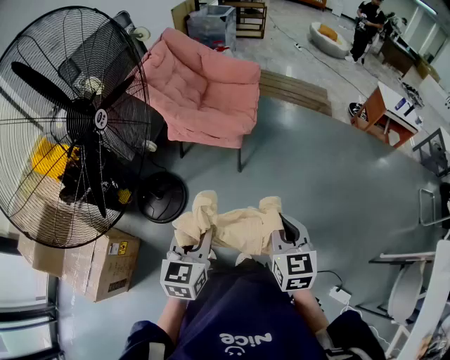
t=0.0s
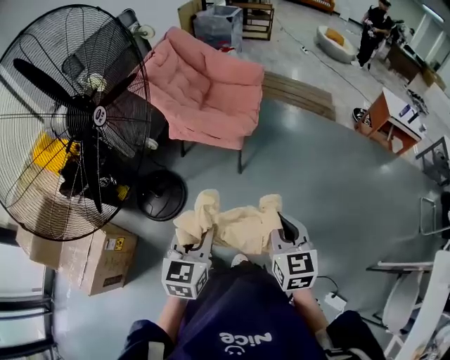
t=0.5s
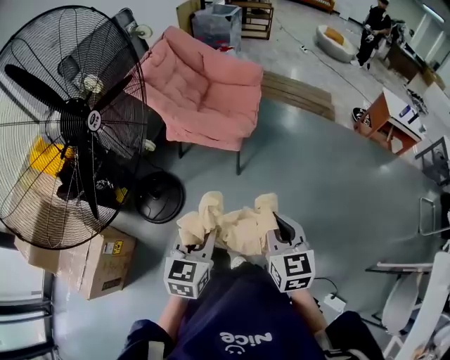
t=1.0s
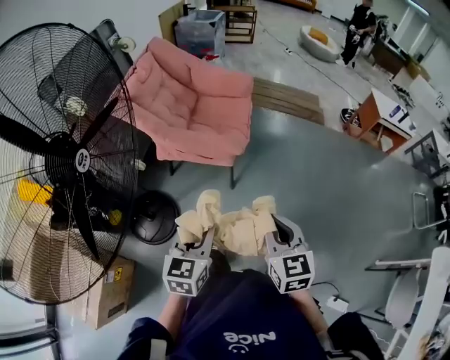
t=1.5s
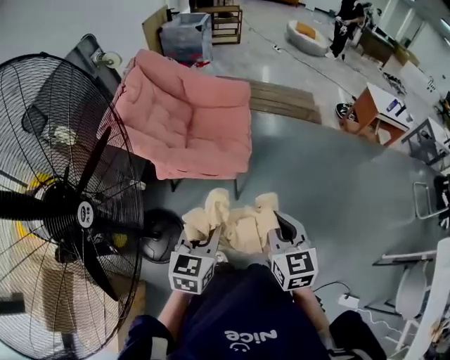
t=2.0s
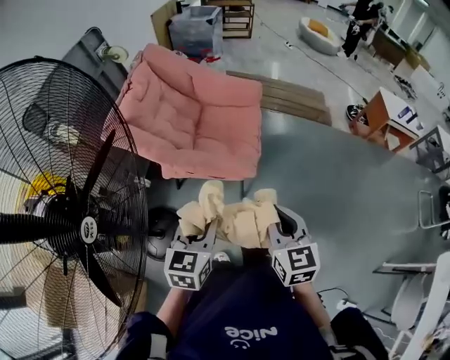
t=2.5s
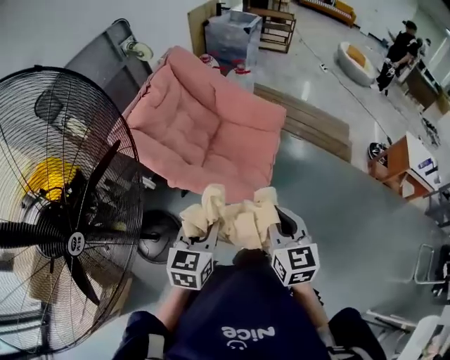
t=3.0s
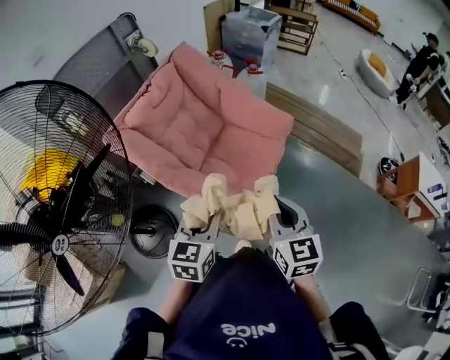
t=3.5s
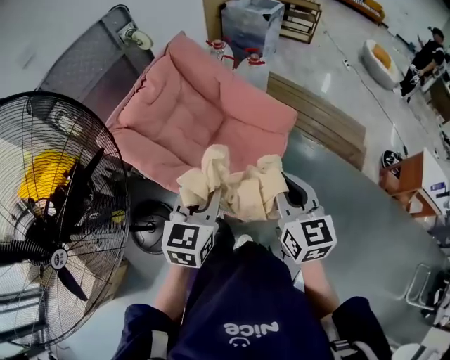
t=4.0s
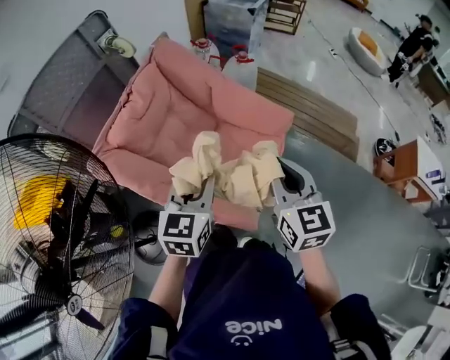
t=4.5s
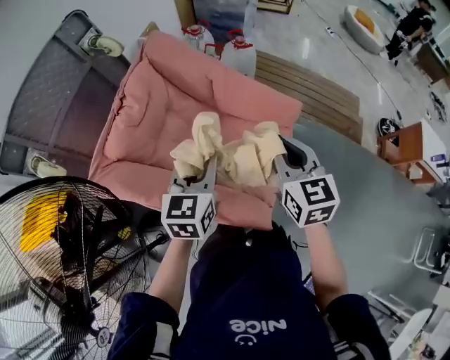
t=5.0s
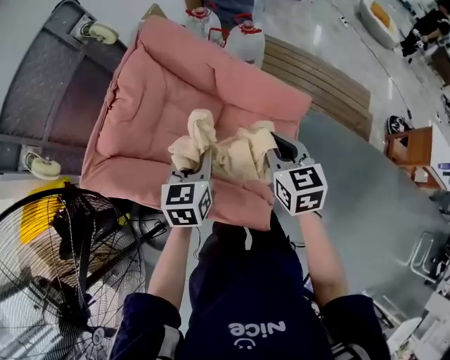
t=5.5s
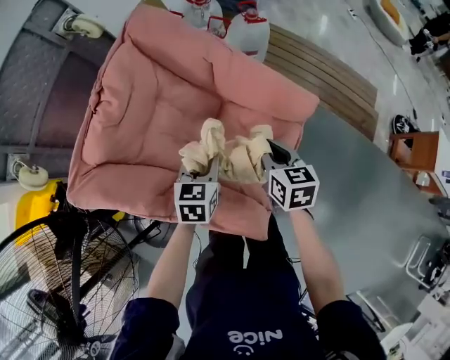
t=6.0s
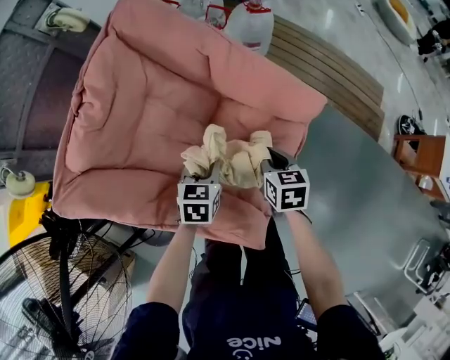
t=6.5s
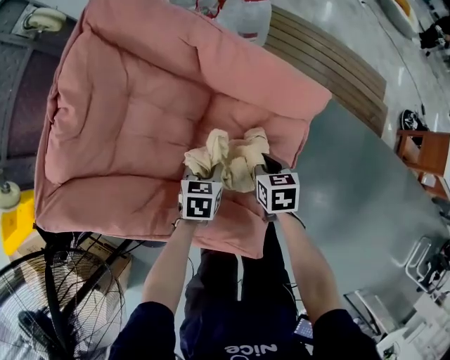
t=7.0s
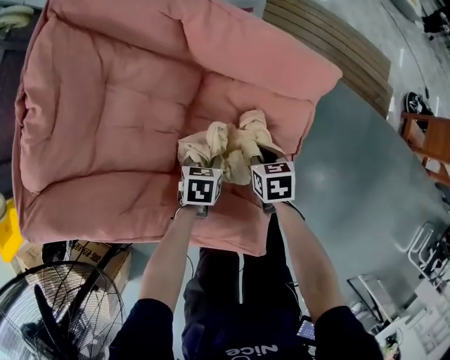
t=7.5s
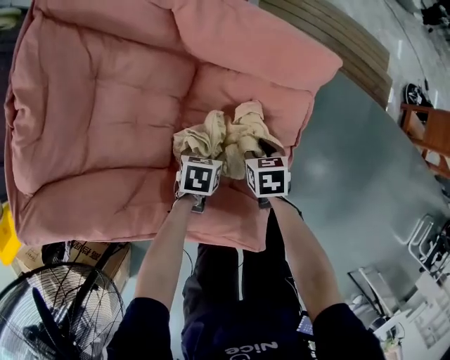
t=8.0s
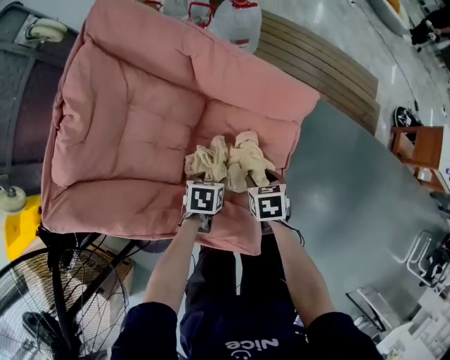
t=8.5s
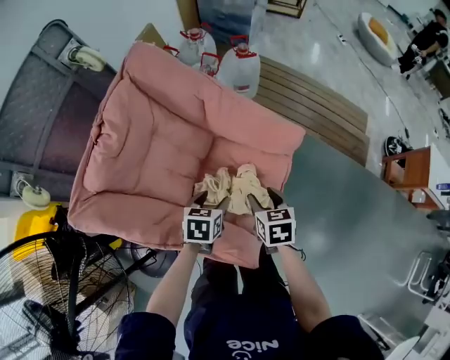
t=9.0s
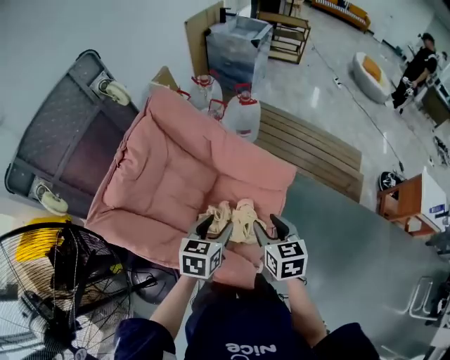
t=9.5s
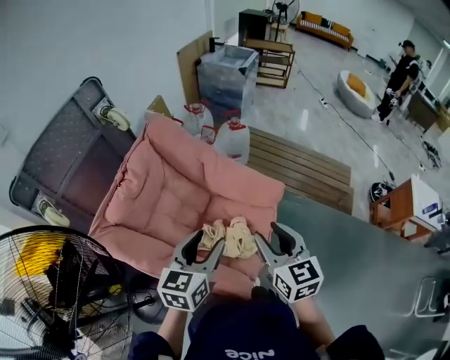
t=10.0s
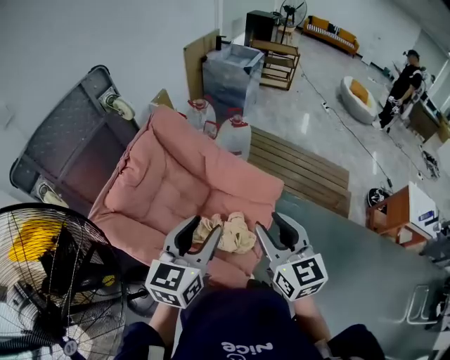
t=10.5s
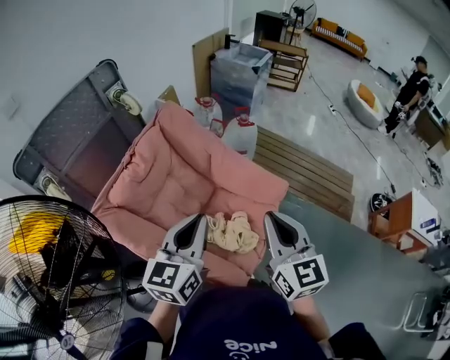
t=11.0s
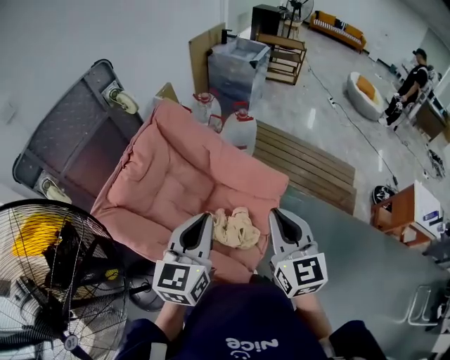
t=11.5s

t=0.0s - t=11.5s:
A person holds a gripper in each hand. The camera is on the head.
t=0.0s - t=2.0s: The two grippers go approximately 25 cm forward.
t=2.0s - t=4.0s: The grippers both shift forward by some 40 cm. The left gripper swivels approximately 20 degrees, while the right gripper changes its angle by approximately 20 degrees.
t=4.0s - t=6.0s: Both grippers move forward and downward, approximately 35 cm. The right gripper turns by roughly 30 degrees, while the left gripper changes its angle by approximately 20 degrees.
t=6.0s - t=7.5s: Both grippers move downward, approximately 30 cm. The left gripper changes its angle by approximately 30 degrees, while the right gripper changes its angle by roughly 20 degrees.
t=7.5s - t=9.5s: Both grippers move upward, some 40 cm. The left gripper changes its angle by some 30 degrees, and opens its fingers, while the right gripper rotates some 30 degrees, and opens.
t=9.5s - t=11.5s: Both grippers travel together upward, approximately 20 cm. The right gripper rotates roughly 30 degrees, and closes; the left gripper swivels approximately 30 degrees, and closes its fingers.

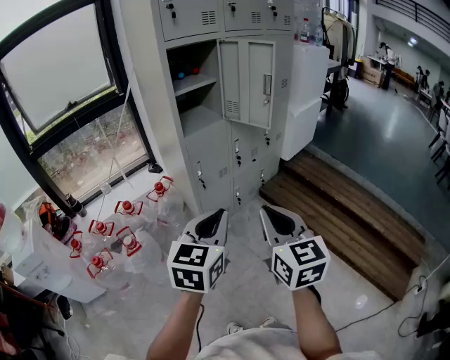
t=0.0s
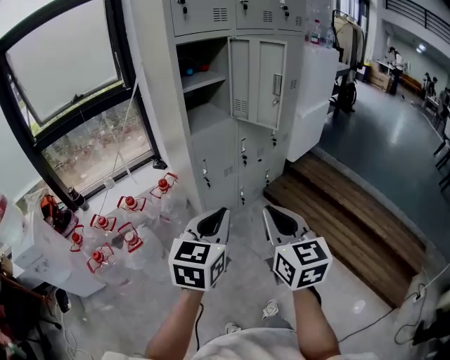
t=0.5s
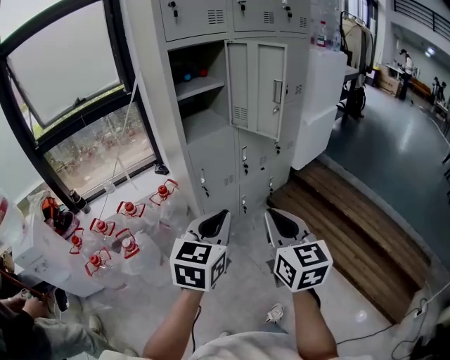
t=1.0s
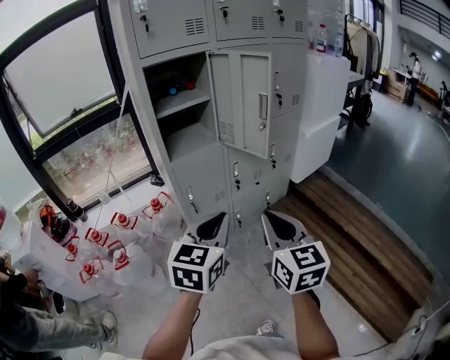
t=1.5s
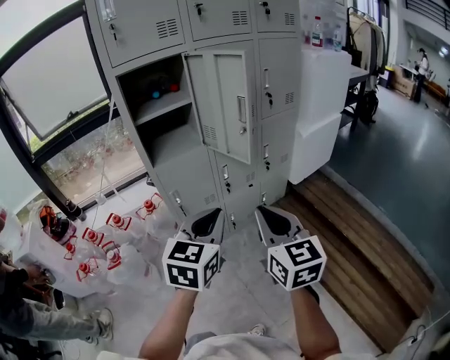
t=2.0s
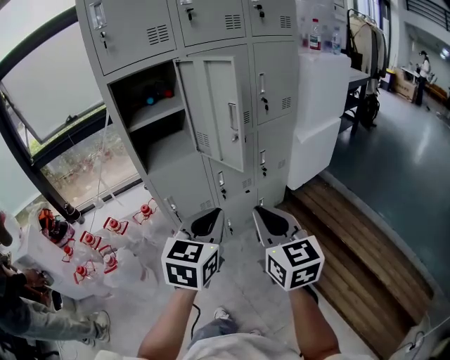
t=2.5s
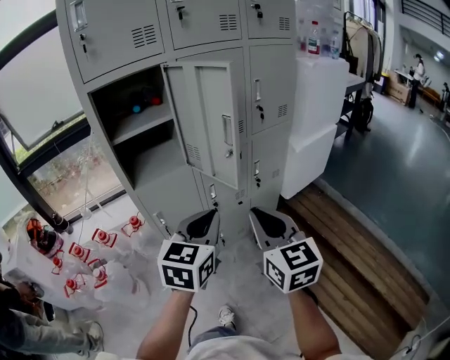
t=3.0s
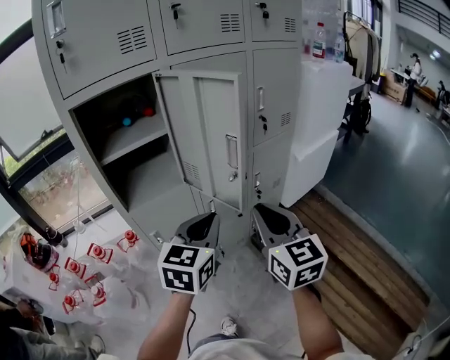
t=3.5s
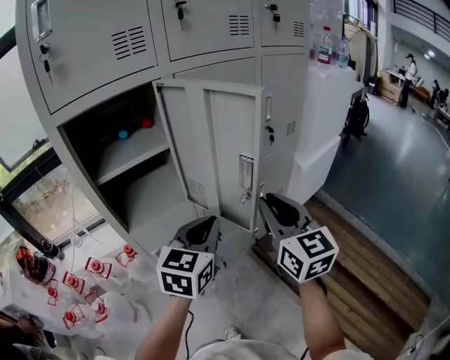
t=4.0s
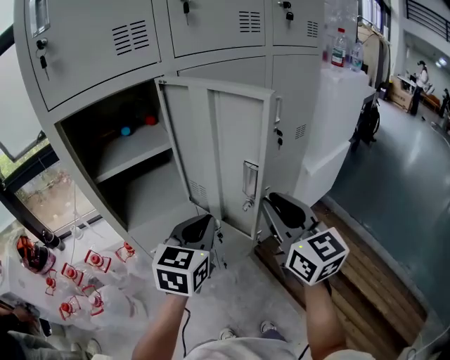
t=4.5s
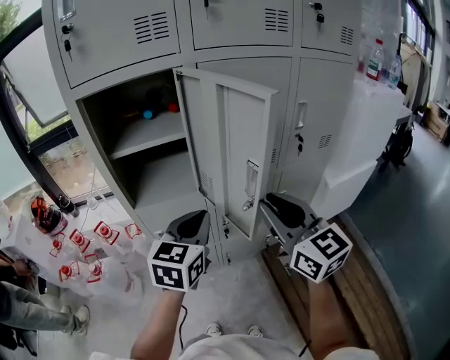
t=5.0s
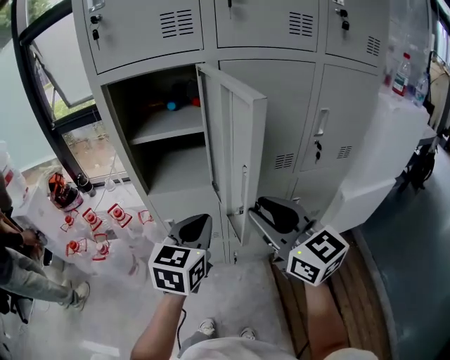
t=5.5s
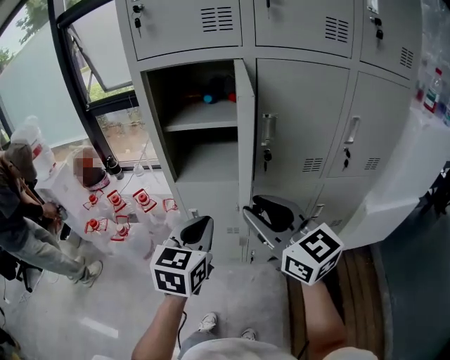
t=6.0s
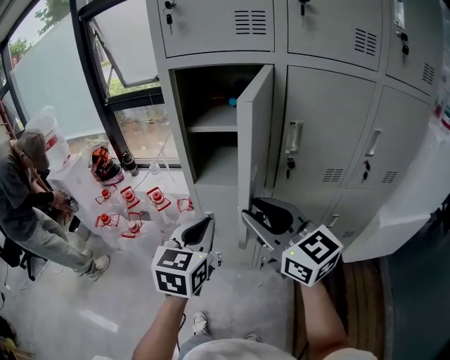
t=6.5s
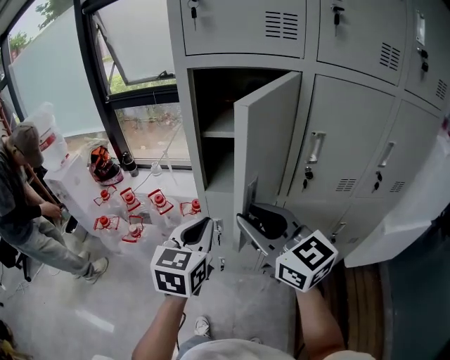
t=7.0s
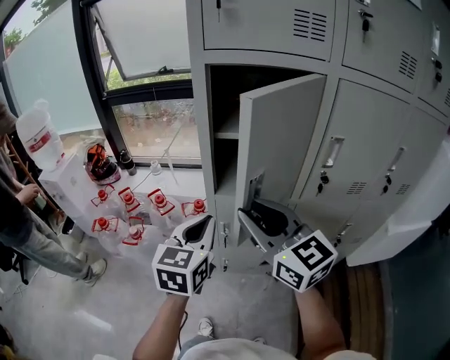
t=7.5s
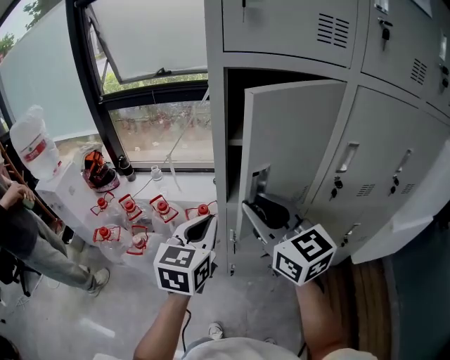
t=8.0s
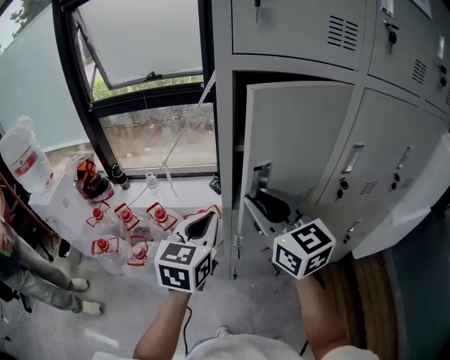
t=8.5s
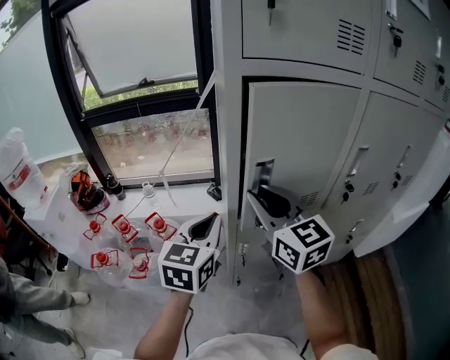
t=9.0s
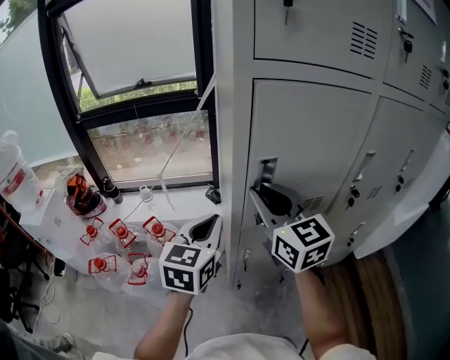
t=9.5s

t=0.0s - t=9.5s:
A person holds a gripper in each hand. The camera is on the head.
t=0.0s - t=2.0s: Both grippers move forward and to the right, about 30 cm.
t=2.0s - t=4.0s: The grippers both shift forward by approximately 25 cm.
t=4.0s - t=5.5s: The left gripper rotates approximately 30 degrees. The right gripper changes its angle by some 40 degrees.
t=5.5s - t=7.5s: Both grippers move to the left and forward, roughly 20 cm.
t=7.5s - t=9.5s: The right gripper goes approximately 15 cm forward, and changes its angle by some 20 degrees. Meanwhile the left gripper heads forward and to the left, covering roughly 15 cm.

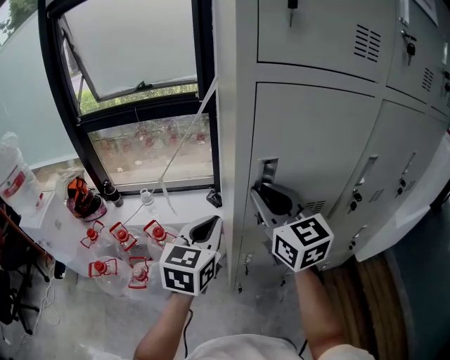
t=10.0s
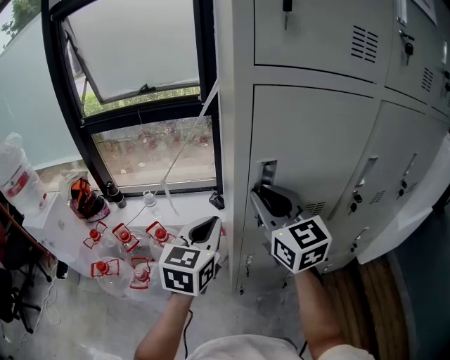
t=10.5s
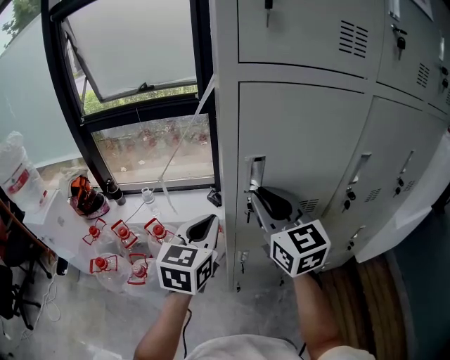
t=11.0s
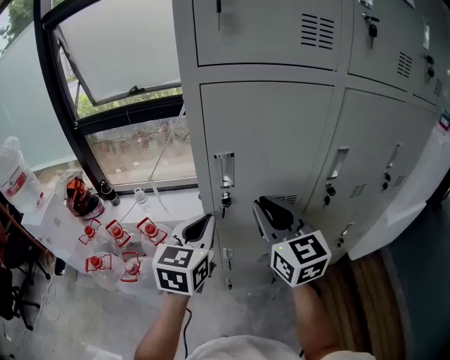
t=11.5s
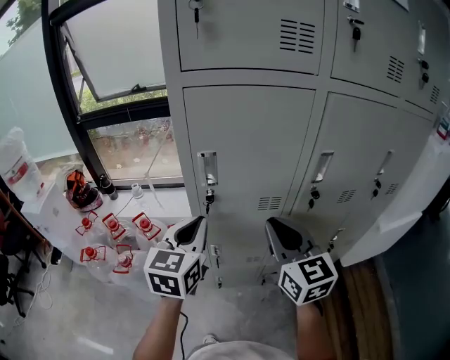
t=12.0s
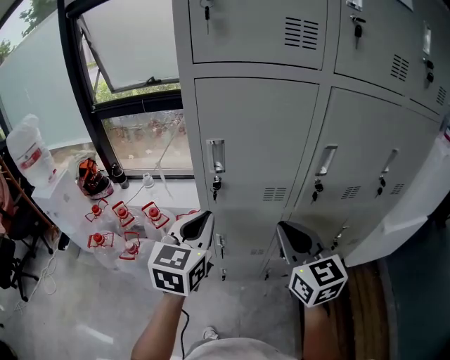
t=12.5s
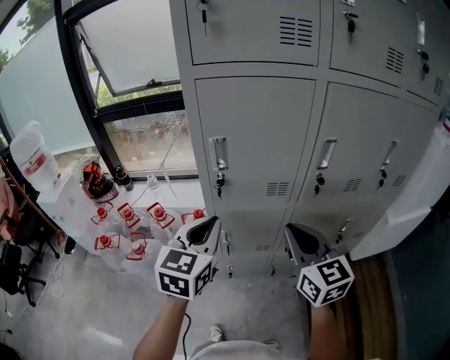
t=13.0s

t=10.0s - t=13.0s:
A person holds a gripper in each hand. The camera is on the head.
t=10.0s - t=11.5s: The right gripper shifts some 10 cm to the right and backward, while the left gripper heads to the right, covering some 5 cm.
t=11.5s - t=13.0s: The right gripper goes approximately 15 cm backward and to the right. Meanwhile the left gripper travels backward by some 10 cm.

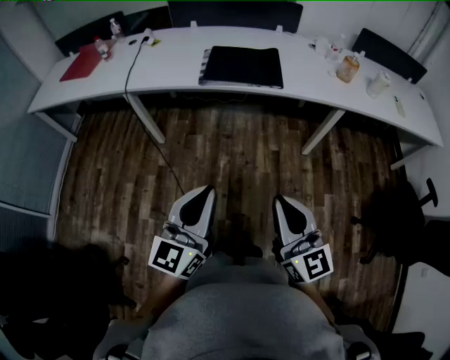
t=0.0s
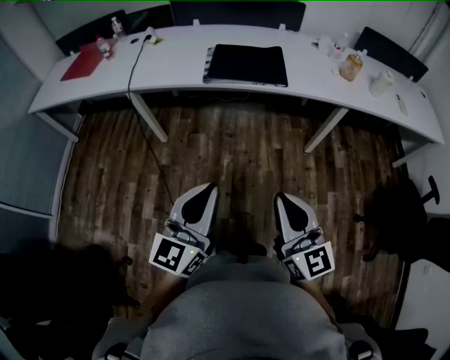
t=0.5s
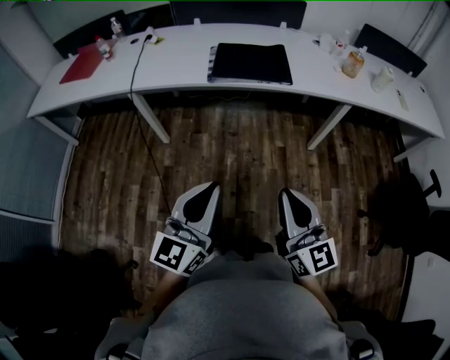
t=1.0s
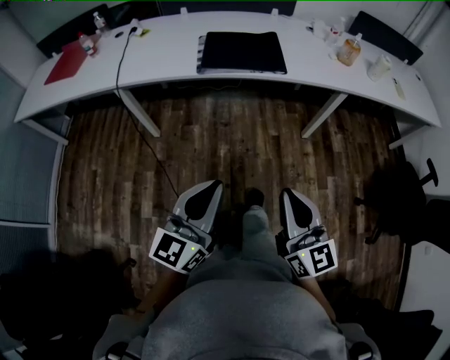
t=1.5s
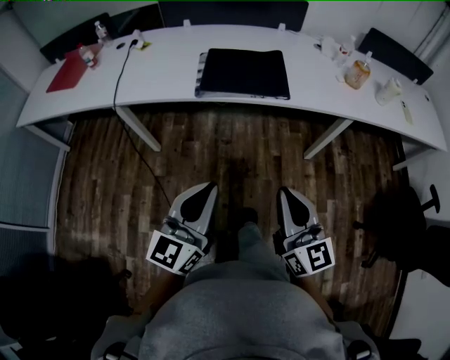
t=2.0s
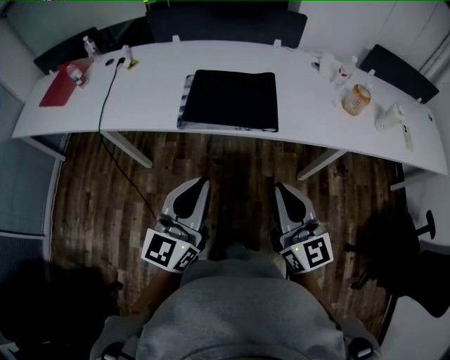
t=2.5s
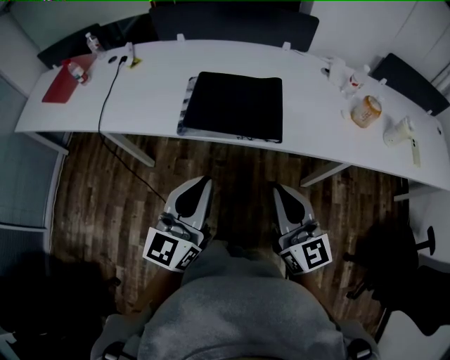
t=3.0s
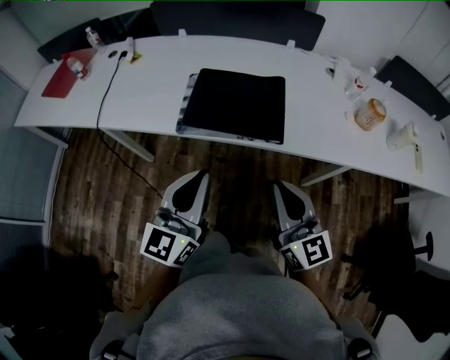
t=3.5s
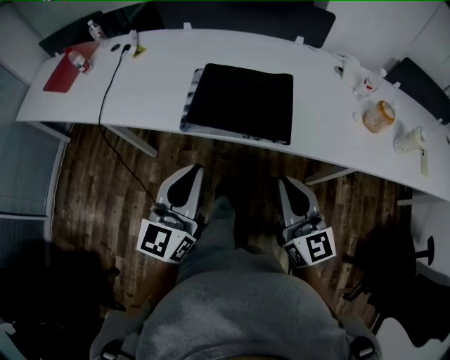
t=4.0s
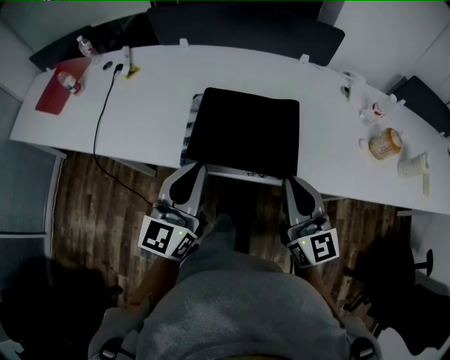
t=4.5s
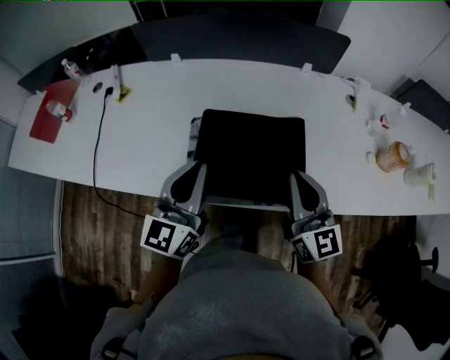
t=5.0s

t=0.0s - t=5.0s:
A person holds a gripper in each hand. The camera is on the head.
t=0.0s - t=2.5s: Both grippers travel together forward, approximately 25 cm.
t=2.5s - t=5.0s: Both grippers travel together forward, about 35 cm.
